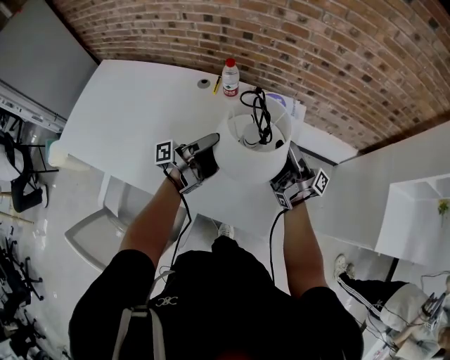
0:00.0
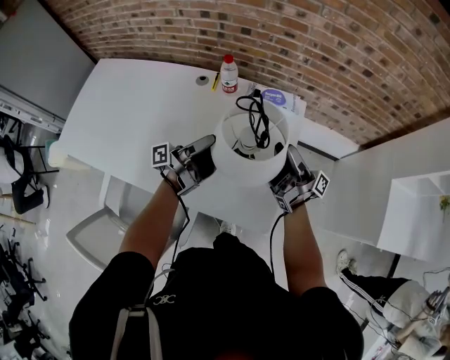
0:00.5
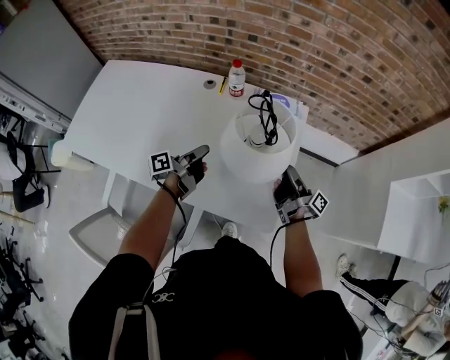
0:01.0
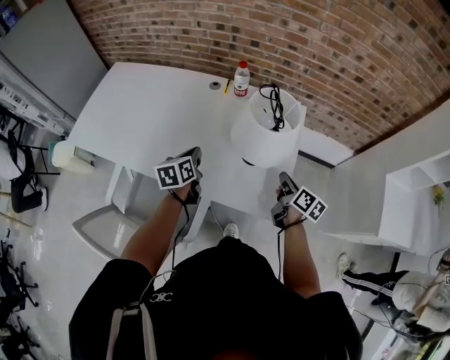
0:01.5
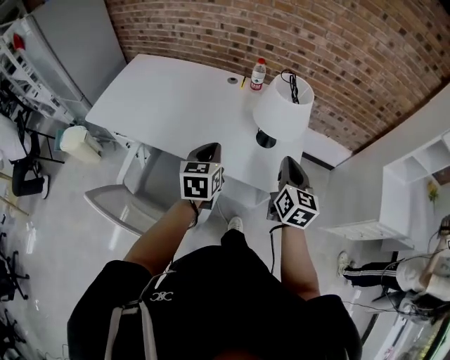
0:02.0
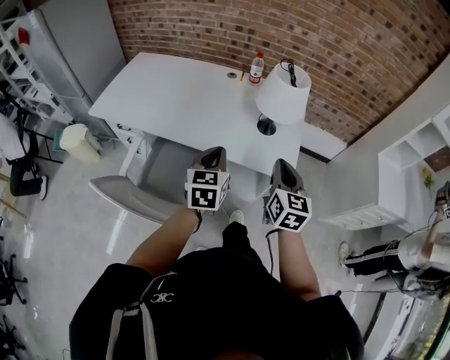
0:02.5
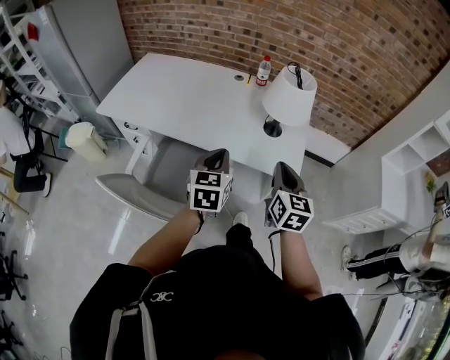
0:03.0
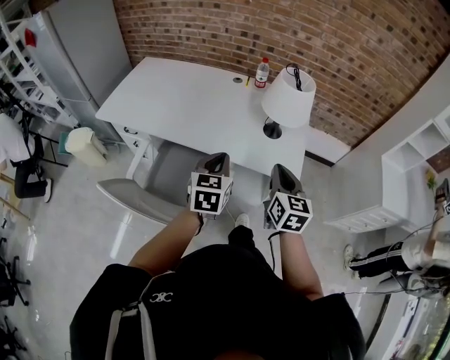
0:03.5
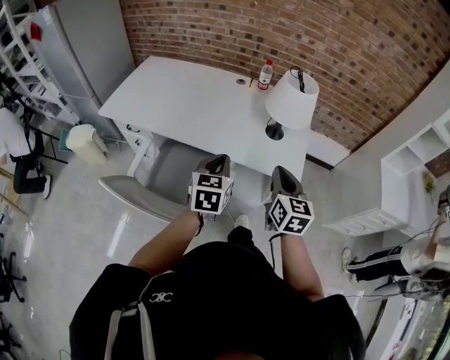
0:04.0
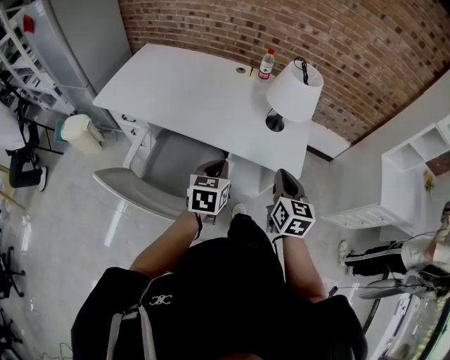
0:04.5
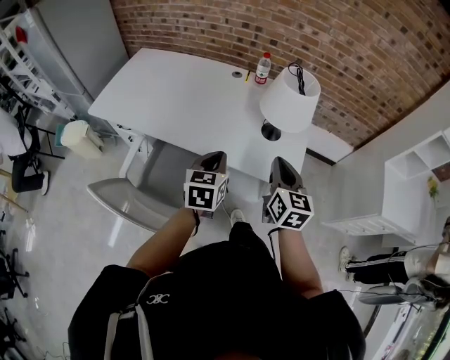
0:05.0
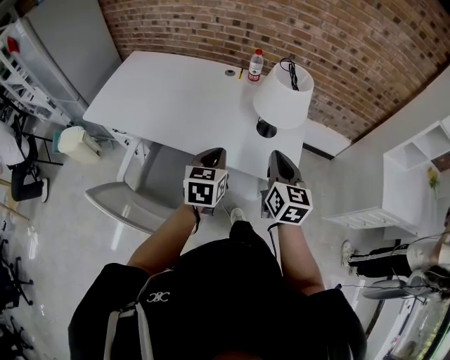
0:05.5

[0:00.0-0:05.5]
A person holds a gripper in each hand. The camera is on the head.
0:00.0 to 0:02.0: The right gripper goes some 25 cm backward, twists approximately 80 degrees counterclockwise, seen from behind, and closes its fingers. Meanwhile the left gripper moves backward and to the left, about 25 cm, tips its fingers downward by about 50 degrees, and closes its fingers.
0:02.0 to 0:03.5: The right gripper heads backward and to the left, covering approximately 15 cm. The left gripper travels backward by approximately 10 cm.
0:03.5 to 0:05.5: Both grippers travel together forward, some 5 cm.

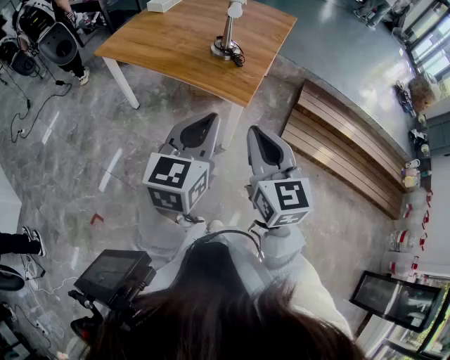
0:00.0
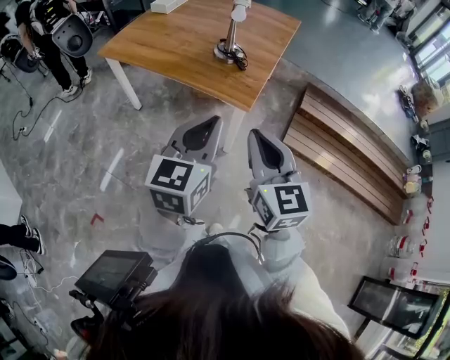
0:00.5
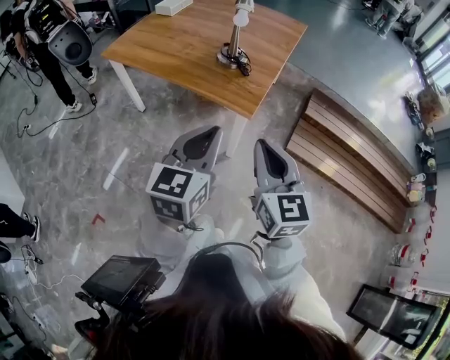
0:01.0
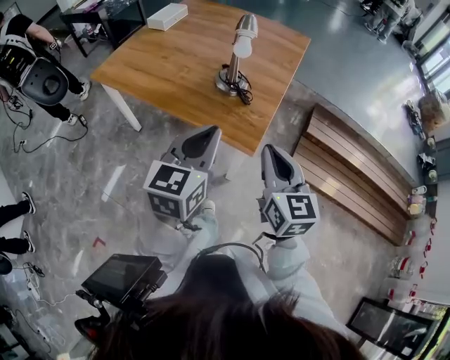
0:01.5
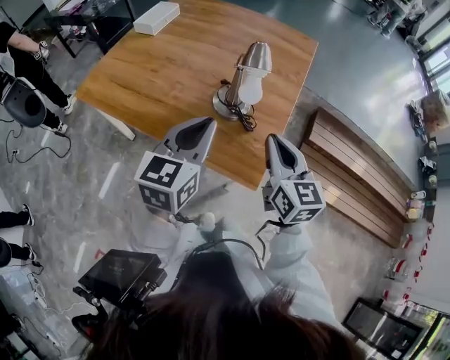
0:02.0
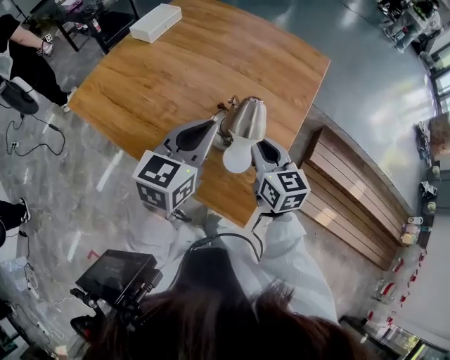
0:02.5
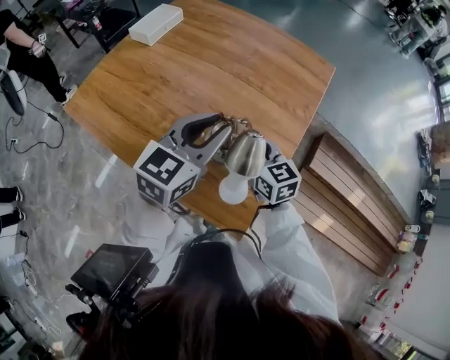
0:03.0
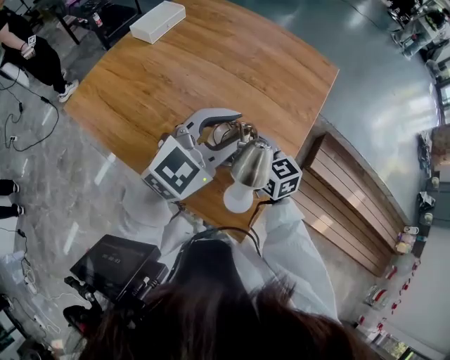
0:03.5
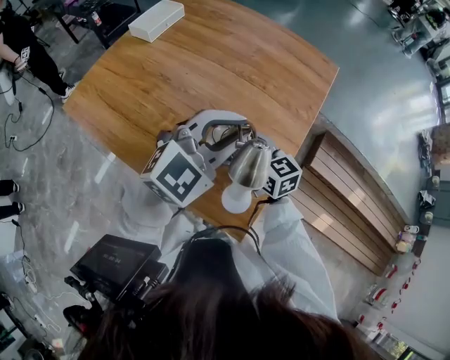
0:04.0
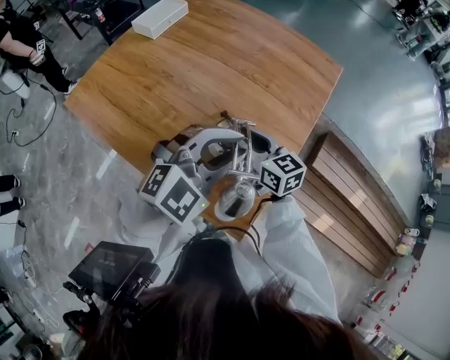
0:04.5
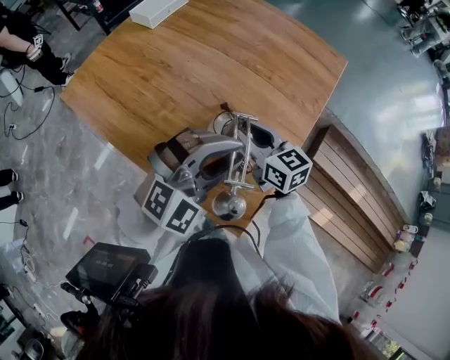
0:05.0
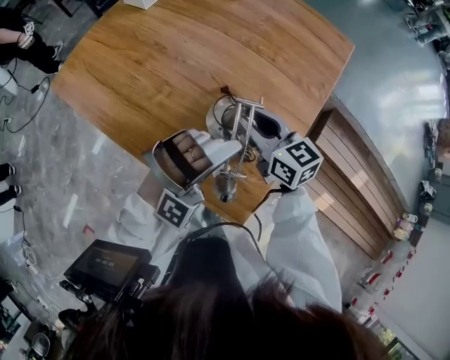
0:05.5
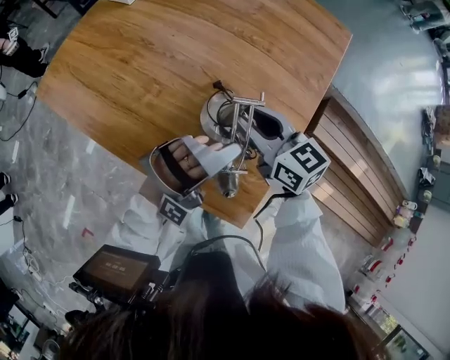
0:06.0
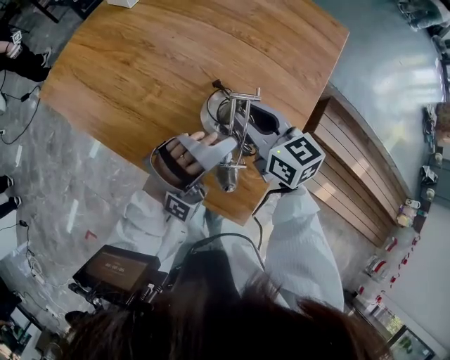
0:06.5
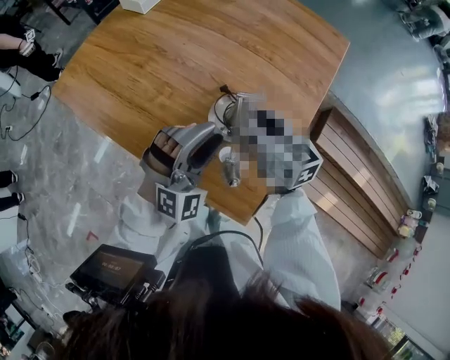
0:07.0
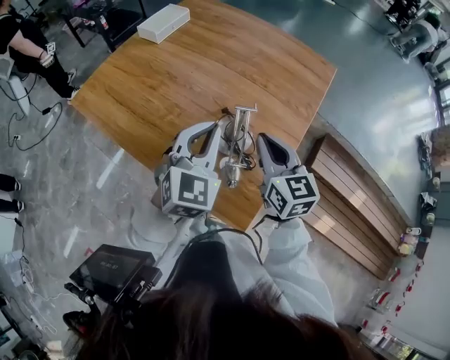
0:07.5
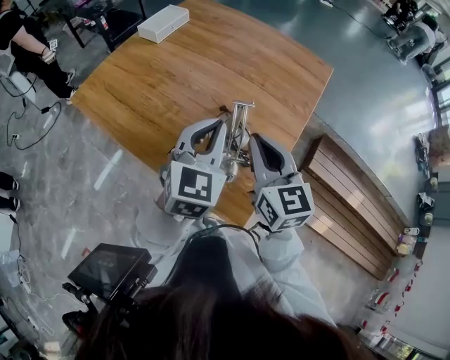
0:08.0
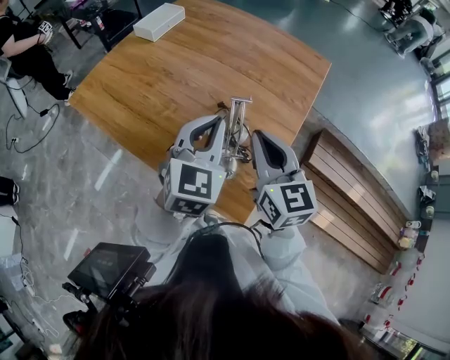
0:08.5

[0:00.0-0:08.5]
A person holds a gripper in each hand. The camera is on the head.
0:00.0 to 0:02.0: Both grippers are carried forward, approximately 40 cm.
0:02.0 to 0:04.0: The right gripper is displaced forward and downward by some 25 cm, swivels some 30 degrees, and opens. Meanwhile the left gripper moves forward and to the right, roughly 20 cm, and turns by about 40 degrees.
0:04.0 to 0:06.5: The left gripper goes about 15 cm downward, and rotates around the line of its fingers by roughly 60 degrees, clockwise from behind.
0:06.5 to 0:08.5: The left gripper shifts about 15 cm upward and to the left, rolls counterclockwise, seen from behind, by approximately 70 degrees, and closes; the right gripper is displaced upward and backward by some 20 cm, turns by some 30 degrees, and closes its fingers.

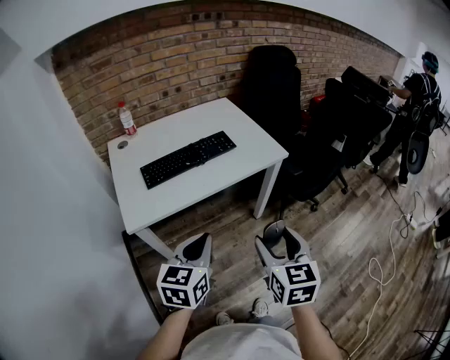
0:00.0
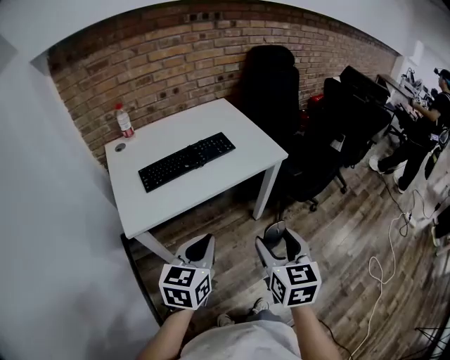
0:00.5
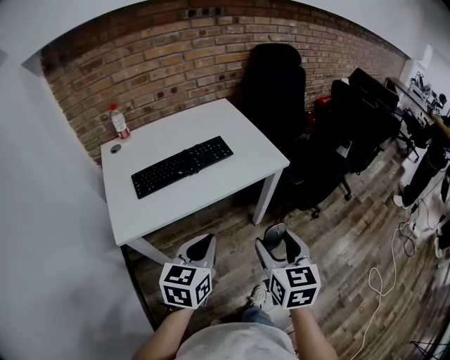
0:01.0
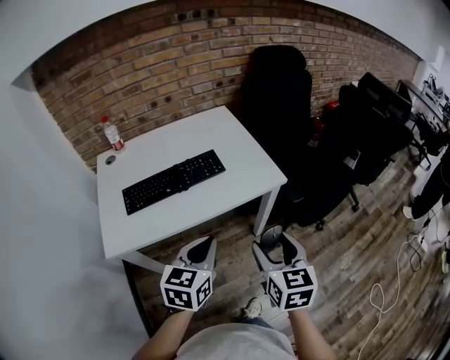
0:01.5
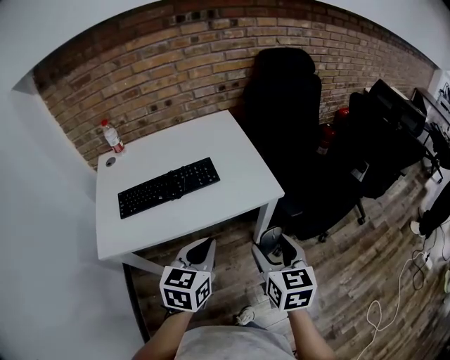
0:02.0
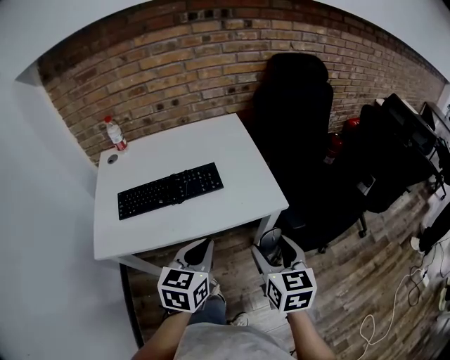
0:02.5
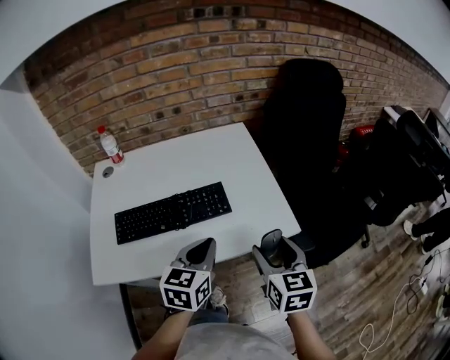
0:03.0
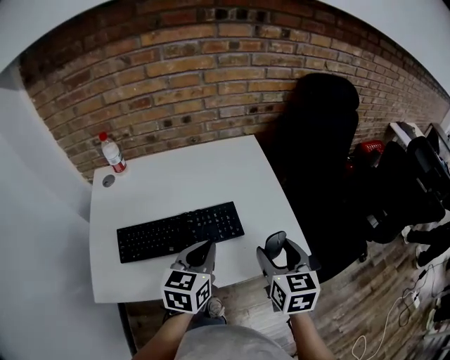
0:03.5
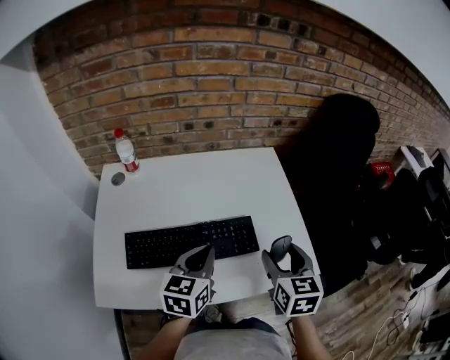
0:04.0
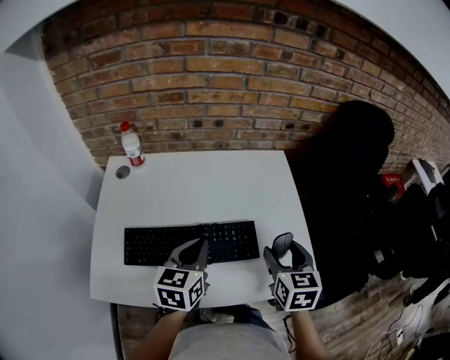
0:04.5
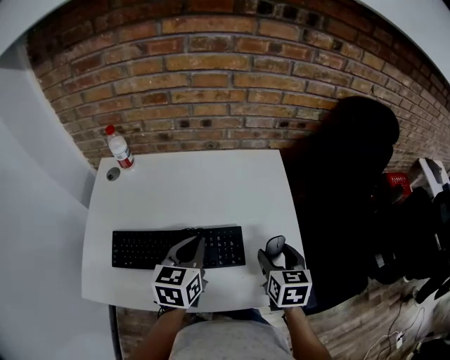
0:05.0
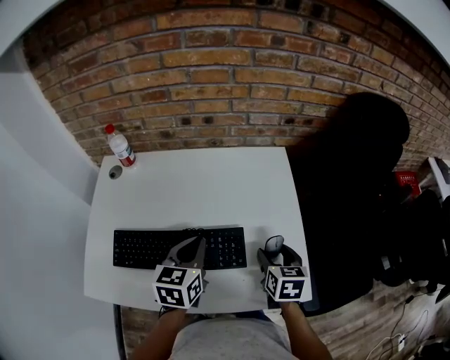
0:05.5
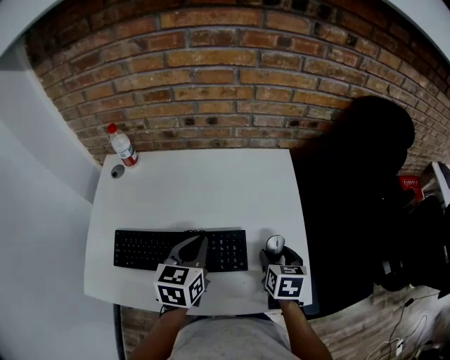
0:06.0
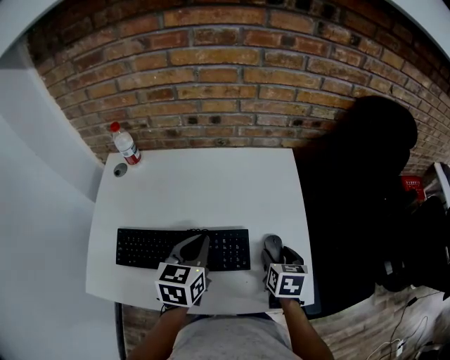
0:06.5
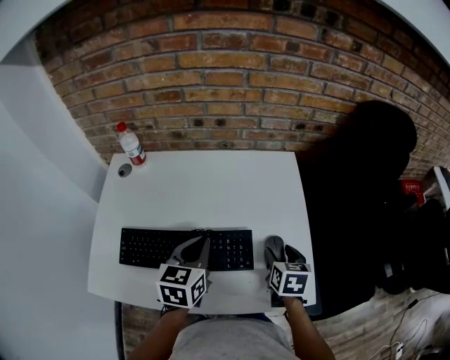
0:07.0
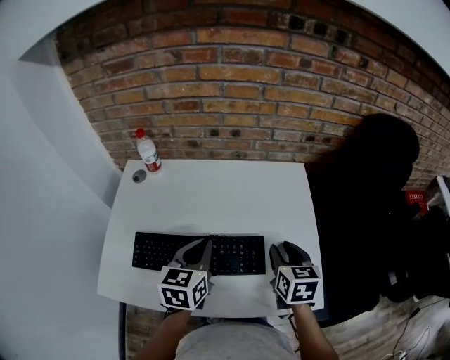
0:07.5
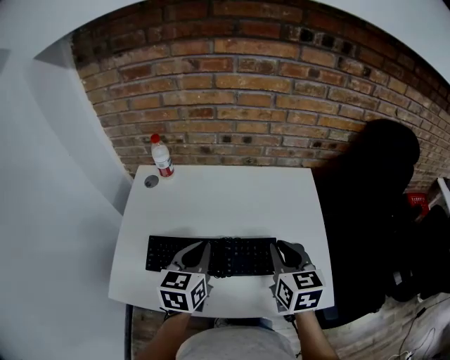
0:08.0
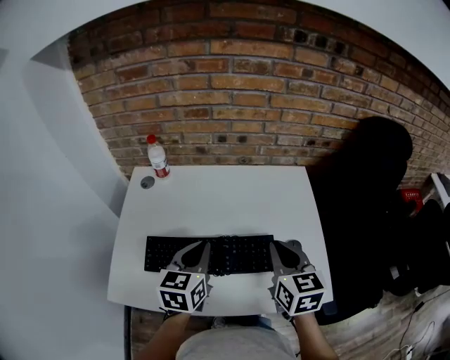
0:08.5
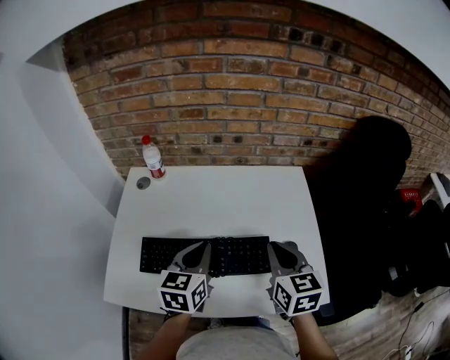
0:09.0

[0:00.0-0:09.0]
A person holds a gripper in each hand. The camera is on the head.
0:00.0 to 0:02.0: Both grippers move forward and to the right, approximately 25 cm.
0:02.0 to 0:04.5: The right gripper moves forward, approximately 35 cm, while the left gripper travels forward and to the left by about 35 cm.
0:04.5 to 0:07.0: The left gripper shifts some 5 cm forward. Meanwhile the right gripper heads downward and forward, covering some 10 cm.
0:07.0 to 0:09.0: The right gripper travels upward and to the left by some 20 cm, rotates some 30 degrees, and closes up, while the left gripper shifts about 5 cm to the left.

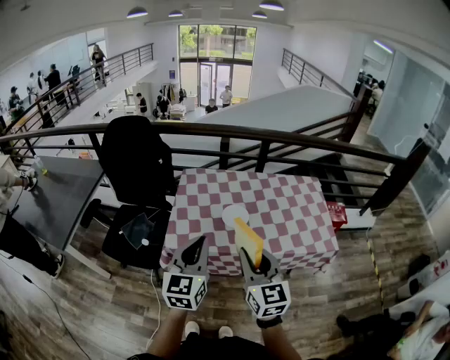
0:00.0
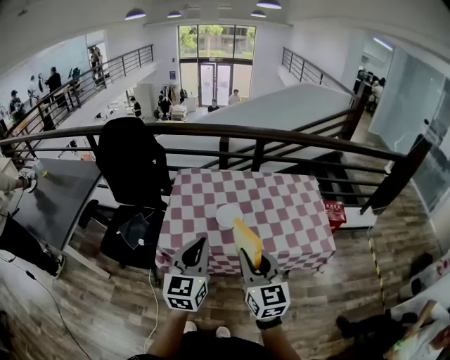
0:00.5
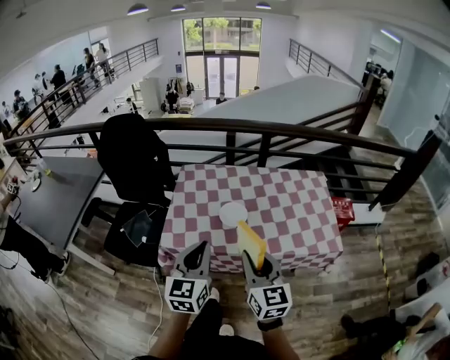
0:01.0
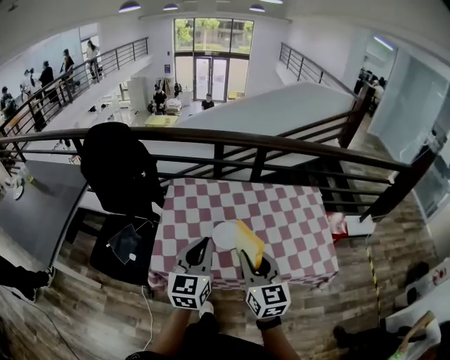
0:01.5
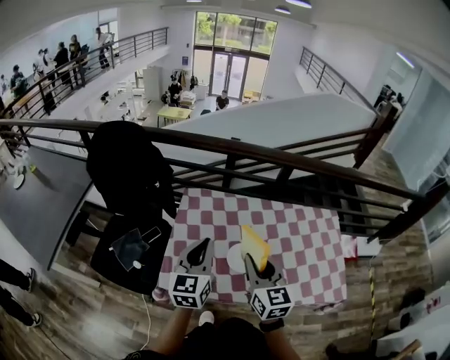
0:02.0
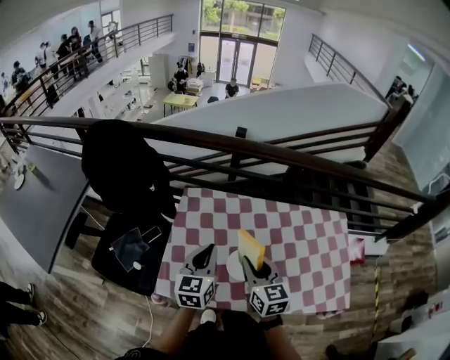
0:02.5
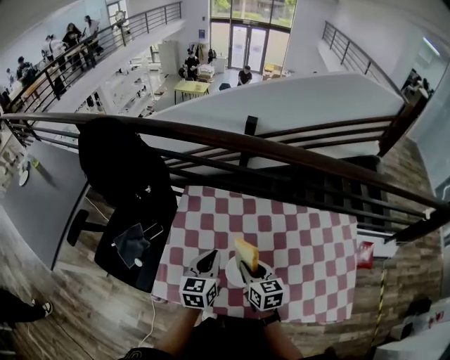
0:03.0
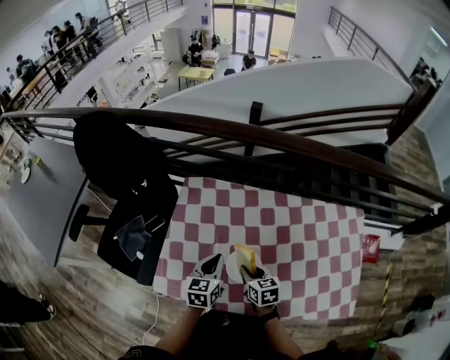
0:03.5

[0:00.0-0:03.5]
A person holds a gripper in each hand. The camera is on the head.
0:00.0 to 0:02.0: The two grippers go about 25 cm forward.
0:02.0 to 0:03.5: Both grippers travel together downward, roughly 25 cm. The left gripper swivels roughly 30 degrees. Meanwhile the right gripper points its fingers roughly 30 degrees further downward.
